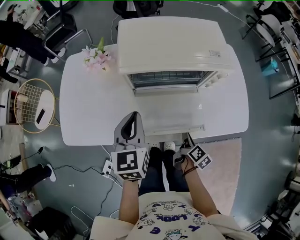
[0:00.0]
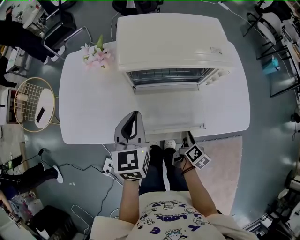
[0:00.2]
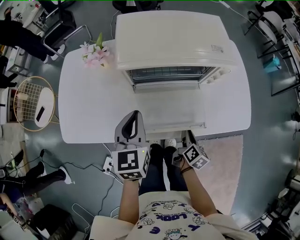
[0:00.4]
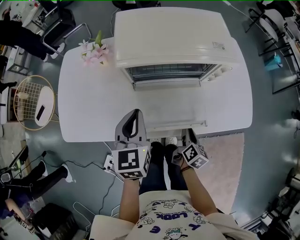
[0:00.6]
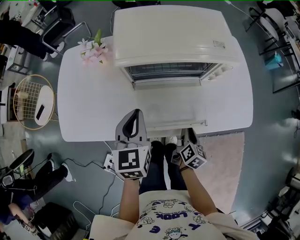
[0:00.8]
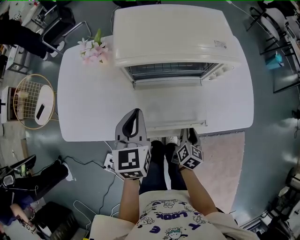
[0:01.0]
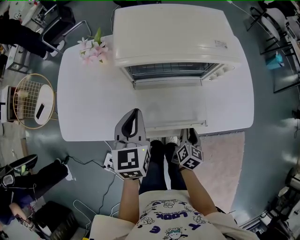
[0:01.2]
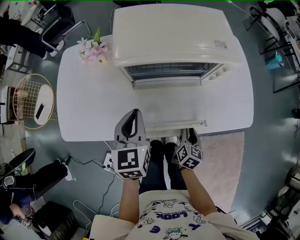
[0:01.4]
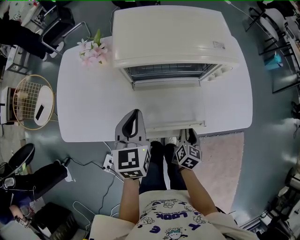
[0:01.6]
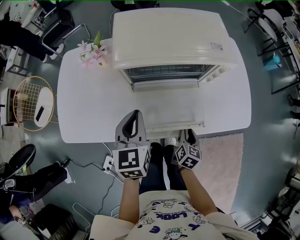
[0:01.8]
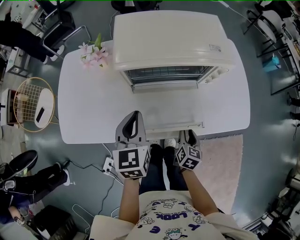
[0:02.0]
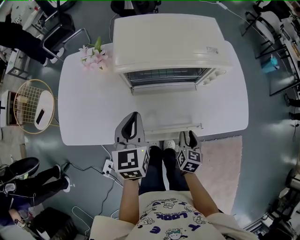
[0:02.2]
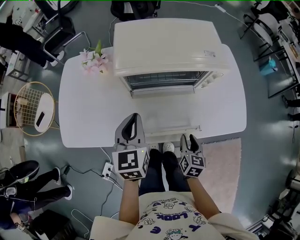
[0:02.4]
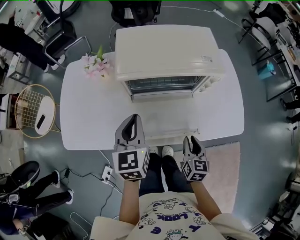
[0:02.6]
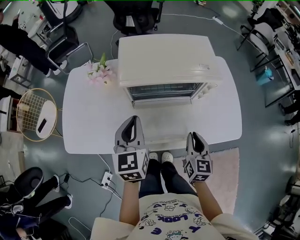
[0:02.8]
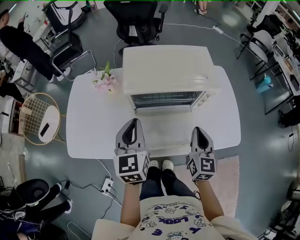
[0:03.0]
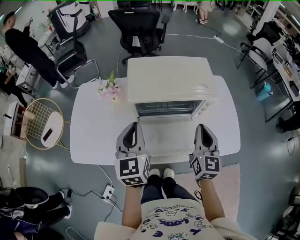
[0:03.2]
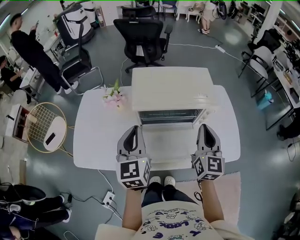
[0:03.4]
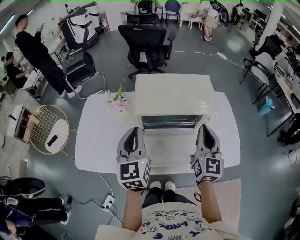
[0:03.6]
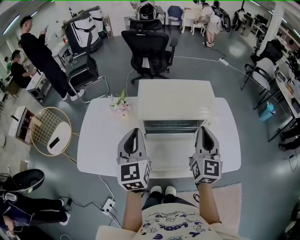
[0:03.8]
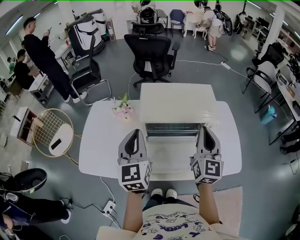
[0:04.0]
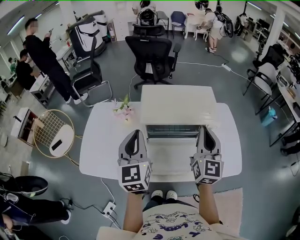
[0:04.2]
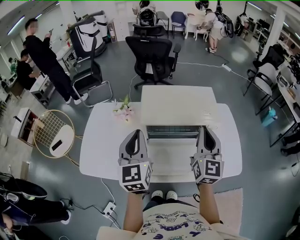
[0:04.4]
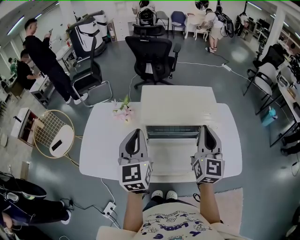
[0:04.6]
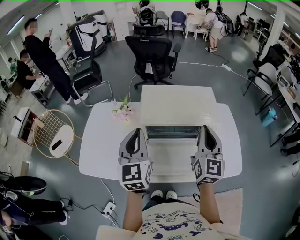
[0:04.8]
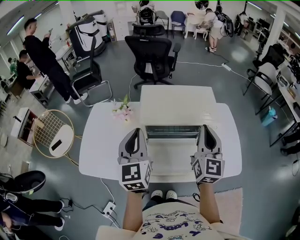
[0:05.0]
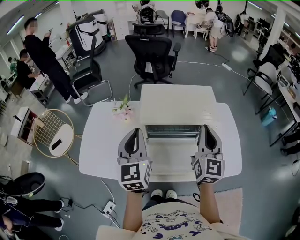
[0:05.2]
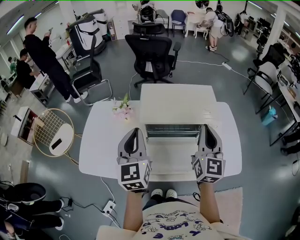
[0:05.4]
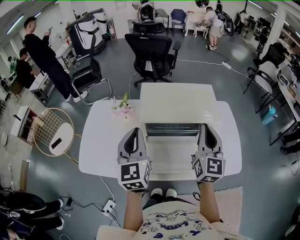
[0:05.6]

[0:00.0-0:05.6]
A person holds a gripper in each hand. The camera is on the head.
0:00.0 to 0:01.4: The right gripper rotates roughly 30 degrees.
0:01.4 to 0:02.8: The right gripper travels upward by about 15 cm, turns by roughly 30 degrees, and closes. Meanwhile the left gripper heads upward, covering about 5 cm.
0:02.8 to 0:04.2: The right gripper shifts about 25 cm upward, and swivels roughly 30 degrees, while the left gripper moves upward, some 15 cm.
0:04.2 to 0:05.6: Both grippers stay put.

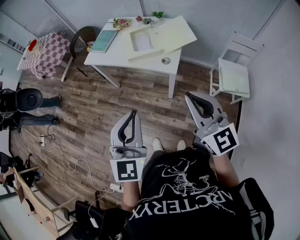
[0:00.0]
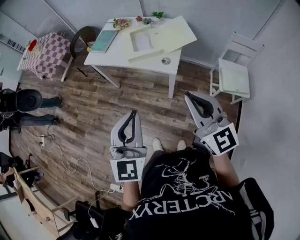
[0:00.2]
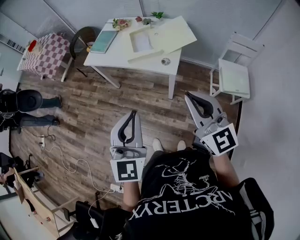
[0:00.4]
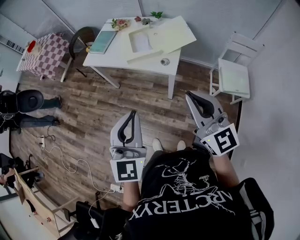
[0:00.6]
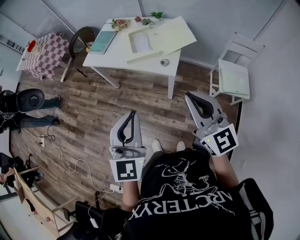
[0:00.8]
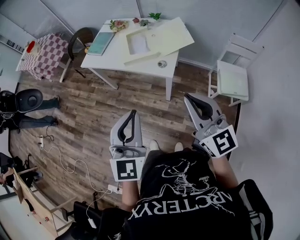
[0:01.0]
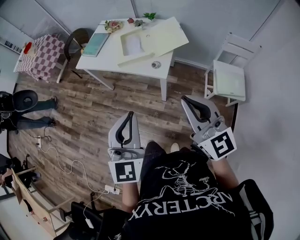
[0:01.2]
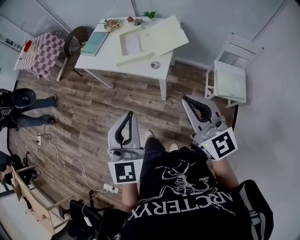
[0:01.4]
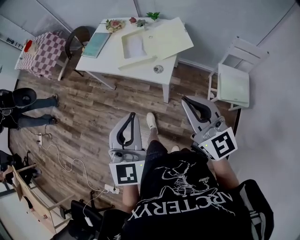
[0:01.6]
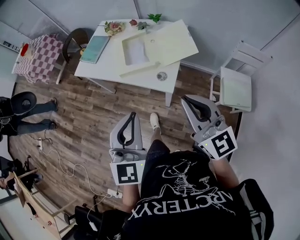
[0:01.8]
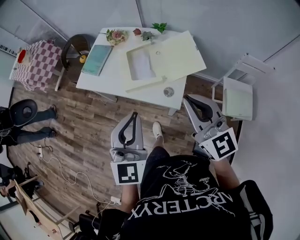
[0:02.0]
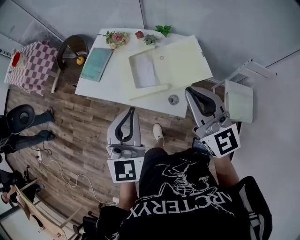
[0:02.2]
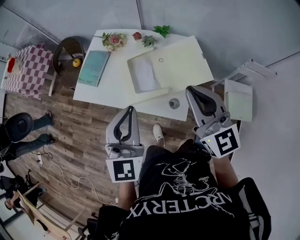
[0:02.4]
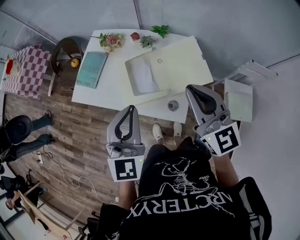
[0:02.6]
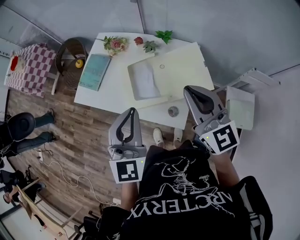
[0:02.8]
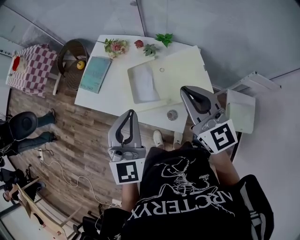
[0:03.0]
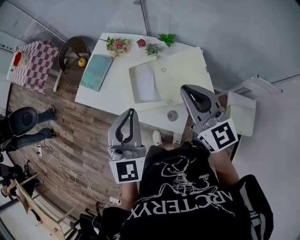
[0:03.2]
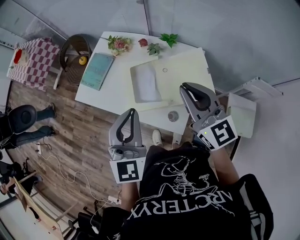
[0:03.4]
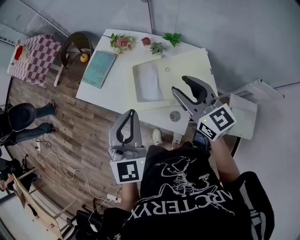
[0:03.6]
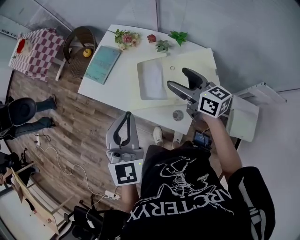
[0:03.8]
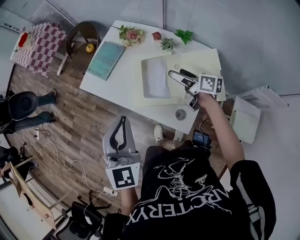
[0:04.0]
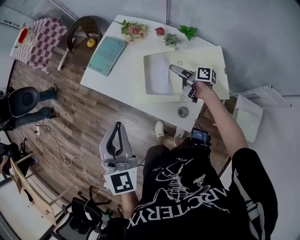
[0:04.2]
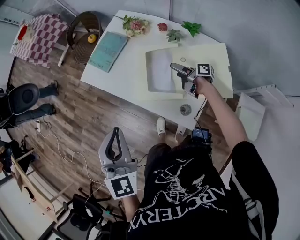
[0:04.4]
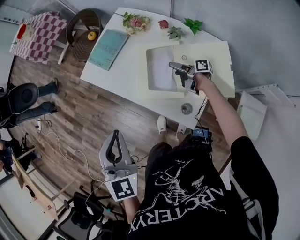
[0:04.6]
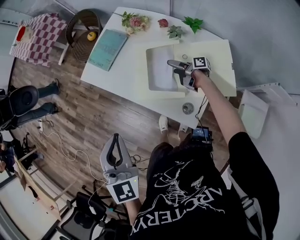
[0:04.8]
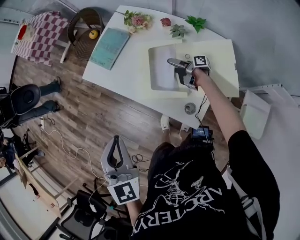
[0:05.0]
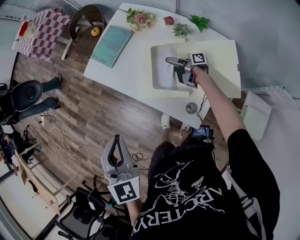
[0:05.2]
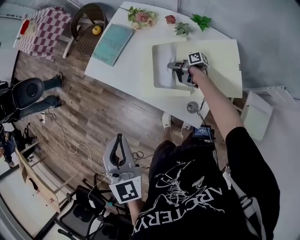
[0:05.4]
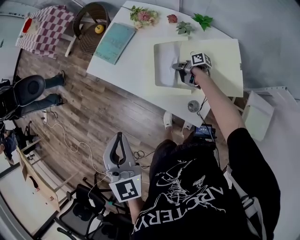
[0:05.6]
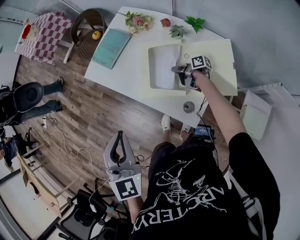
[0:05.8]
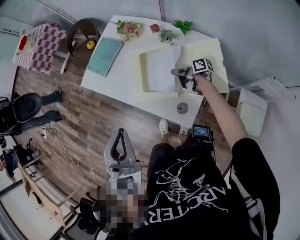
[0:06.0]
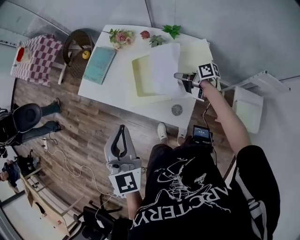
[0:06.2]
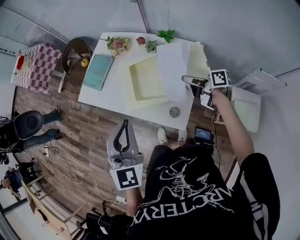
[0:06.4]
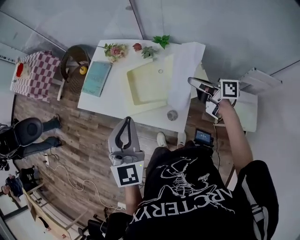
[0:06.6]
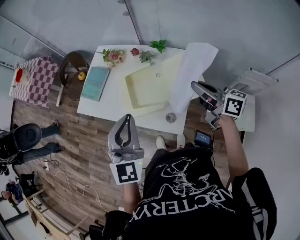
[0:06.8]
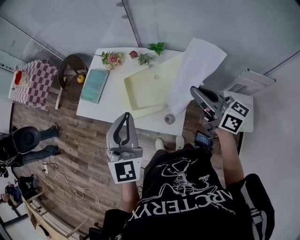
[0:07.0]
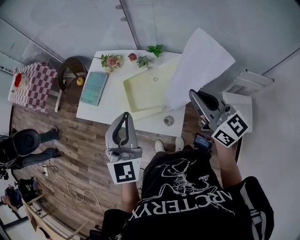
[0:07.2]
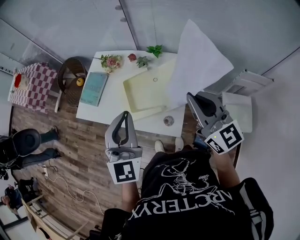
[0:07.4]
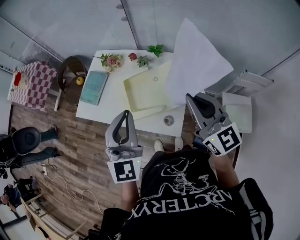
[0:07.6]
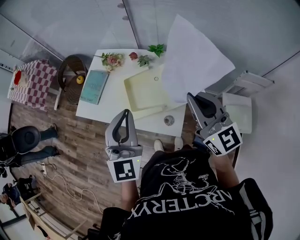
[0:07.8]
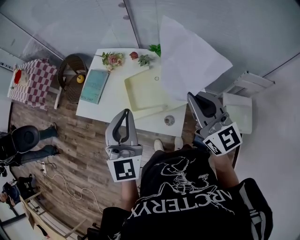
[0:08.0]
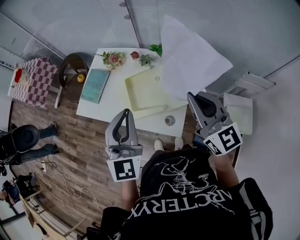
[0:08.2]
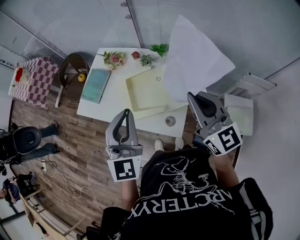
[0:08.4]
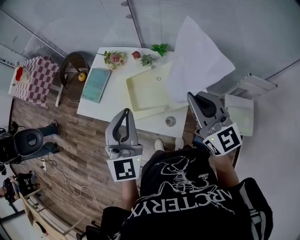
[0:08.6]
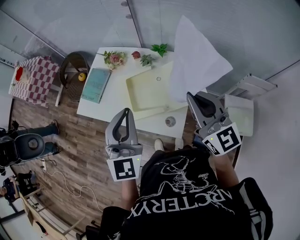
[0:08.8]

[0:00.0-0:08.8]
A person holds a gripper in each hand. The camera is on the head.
0:00.0 to 0:01.4: The grippers both shift to the right by approximately 10 cm.
0:01.4 to 0:03.0: The grippers both shift forward by roughly 40 cm.
0:03.0 to 0:04.4: The right gripper is displaced downward and forward by about 40 cm, rolls clockwise, seen from behind, by roughly 90 degrees, and opens its fingers. Meanwhile the left gripper heads to the left, covering some 10 cm, and swivels some 20 degrees.
0:04.4 to 0:05.8: The right gripper travels downward by some 5 cm, and closes.
0:05.8 to 0:07.4: The left gripper changes place by about 15 cm, and rotates roughly 30 degrees. The right gripper moves upward, roughly 40 cm, and rotates around the line of its fingers by about 80 degrees, counterclockwise from behind.
0:07.4 to 0:08.8: The grippers make only small movements.

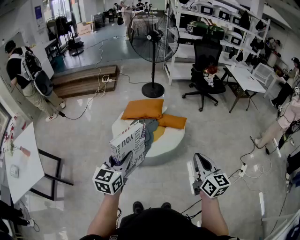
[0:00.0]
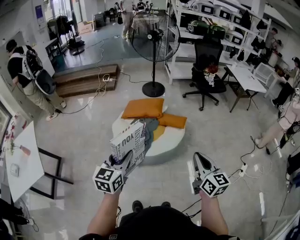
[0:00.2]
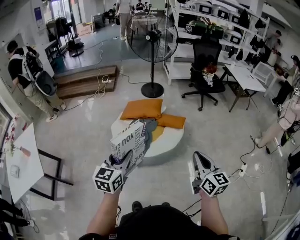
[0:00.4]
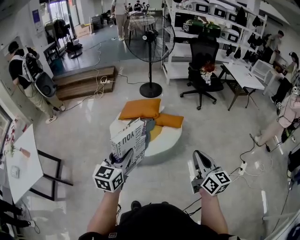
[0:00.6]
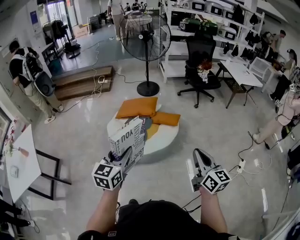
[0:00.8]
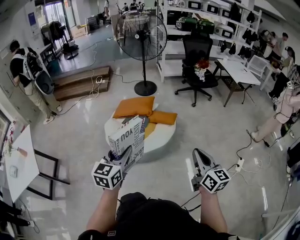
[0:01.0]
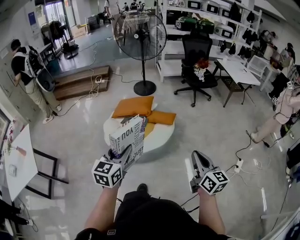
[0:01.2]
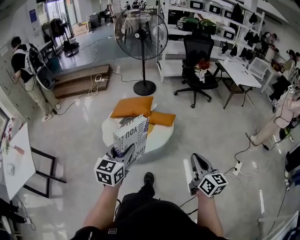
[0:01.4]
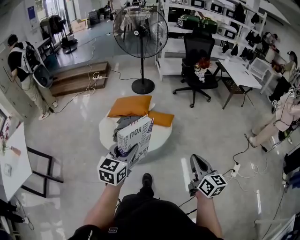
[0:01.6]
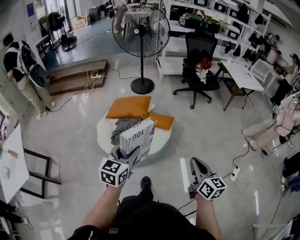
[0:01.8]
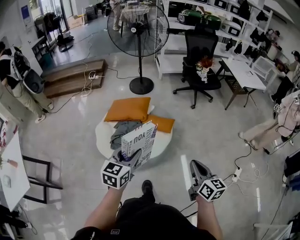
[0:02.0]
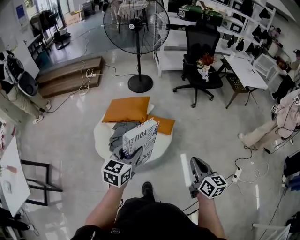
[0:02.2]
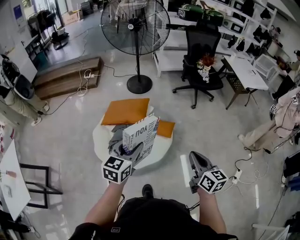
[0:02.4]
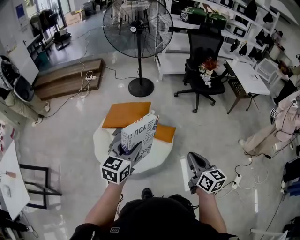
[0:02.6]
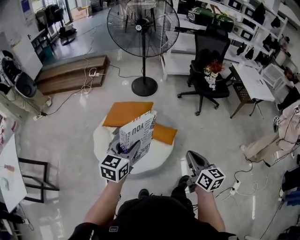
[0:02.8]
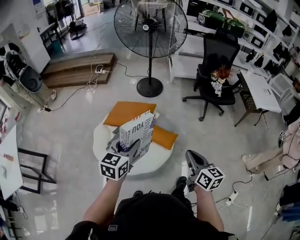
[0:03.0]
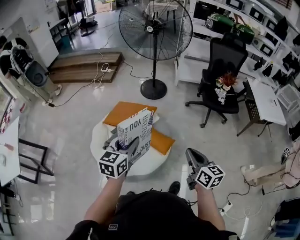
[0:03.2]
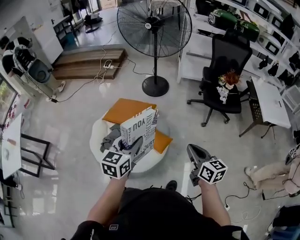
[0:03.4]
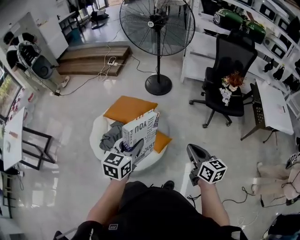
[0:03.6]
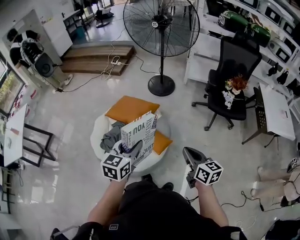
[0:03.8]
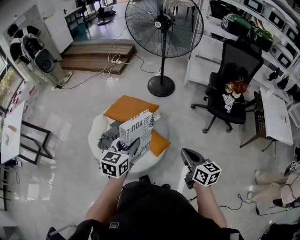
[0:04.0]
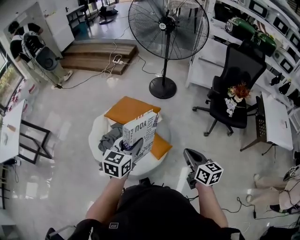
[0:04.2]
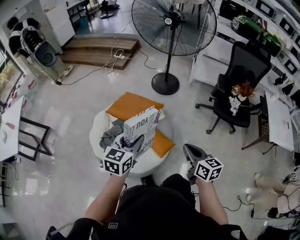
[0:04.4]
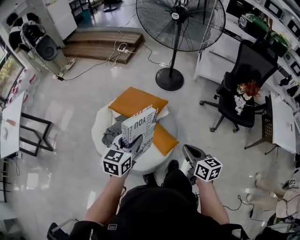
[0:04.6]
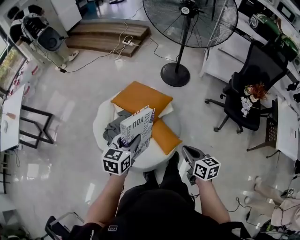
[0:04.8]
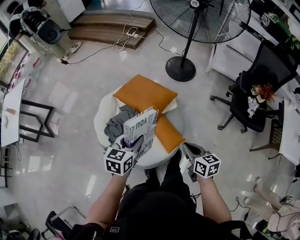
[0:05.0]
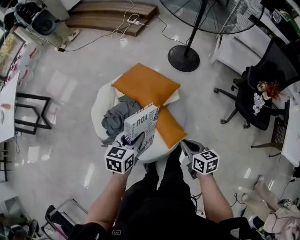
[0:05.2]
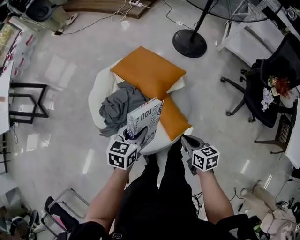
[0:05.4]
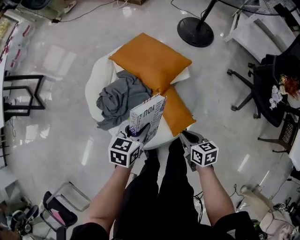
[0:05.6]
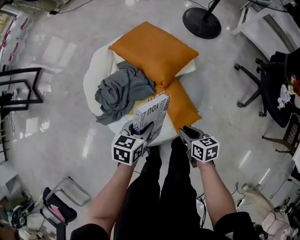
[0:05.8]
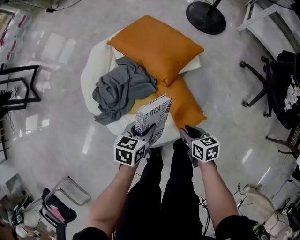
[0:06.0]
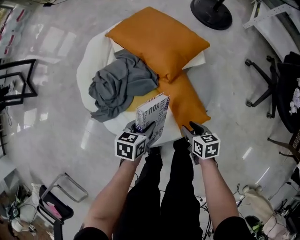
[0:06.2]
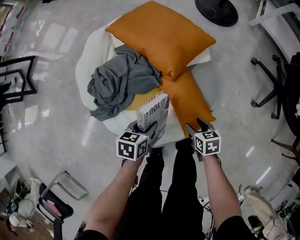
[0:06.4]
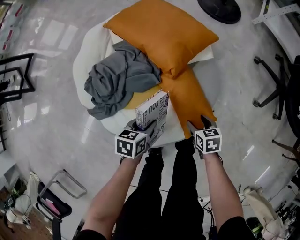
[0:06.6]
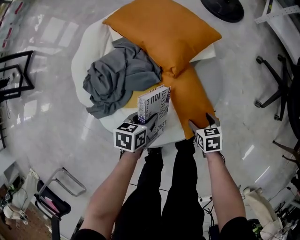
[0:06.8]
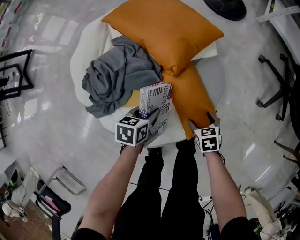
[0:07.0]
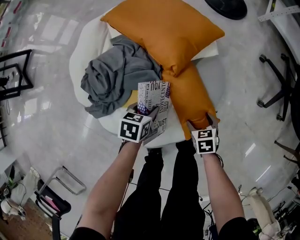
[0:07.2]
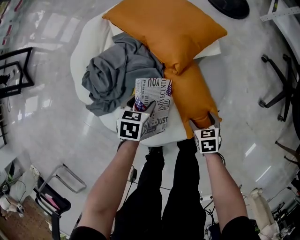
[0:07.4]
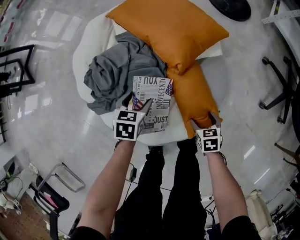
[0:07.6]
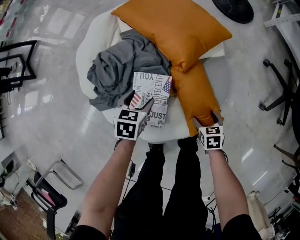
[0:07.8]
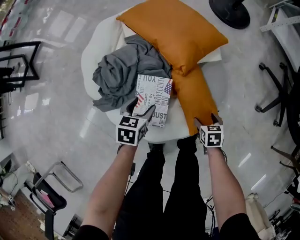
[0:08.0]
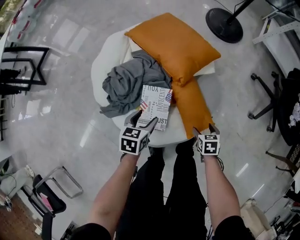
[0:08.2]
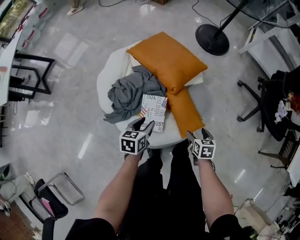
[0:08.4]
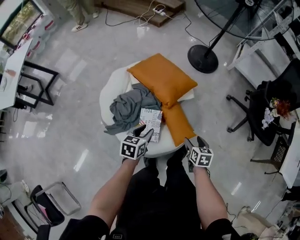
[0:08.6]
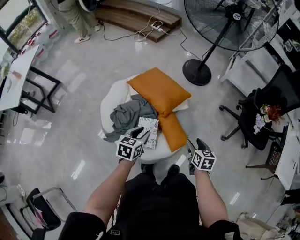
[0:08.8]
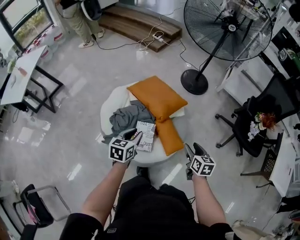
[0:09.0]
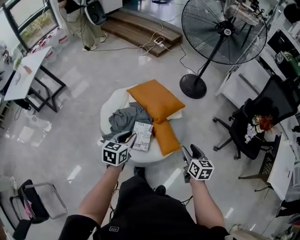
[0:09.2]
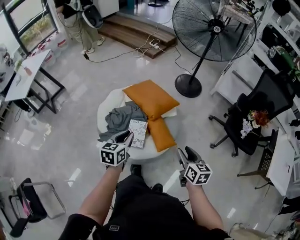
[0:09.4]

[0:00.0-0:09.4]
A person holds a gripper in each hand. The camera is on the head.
0:00.0 to 0:01.6: The two grippers go approximately 15 cm to the right.
0:01.6 to 0:03.2: Both grippers are carried forward, some 40 cm. The right gripper changes its angle by roughly 20 degrees.
0:03.2 to 0:04.8: The two grippers go approximately 20 cm forward and downward. The right gripper changes its angle by roughly 30 degrees.
0:04.8 to 0:06.2: Both grippers travel together downward, some 40 cm. The right gripper rotates about 30 degrees, and opens. The left gripper rotates approximately 30 degrees.
0:06.2 to 0:07.8: The left gripper travels downward and to the left by roughly 10 cm, and opens; the right gripper moves downward, approximately 15 cm, swivels about 20 degrees, and opens its fingers.
0:07.8 to 0:09.4: Both grippers travel together upward, approximately 50 cm. The left gripper turns by about 30 degrees, and closes its fingers; the right gripper angles its fingers upward, by some 40 degrees, and closes up.
